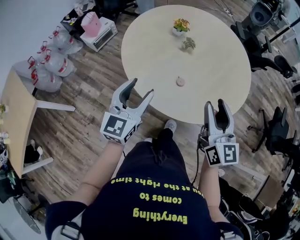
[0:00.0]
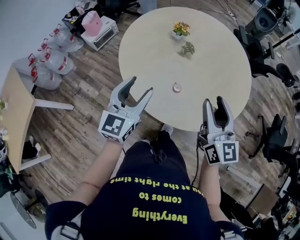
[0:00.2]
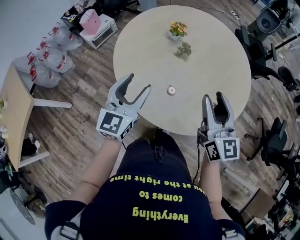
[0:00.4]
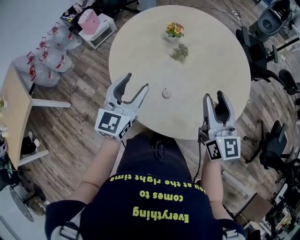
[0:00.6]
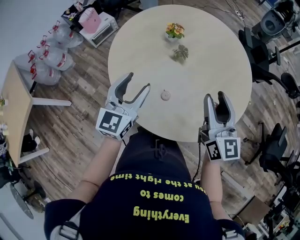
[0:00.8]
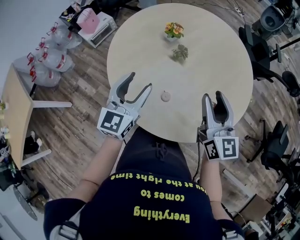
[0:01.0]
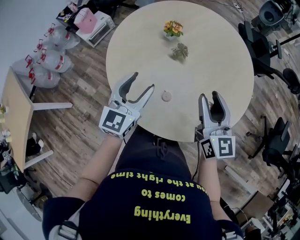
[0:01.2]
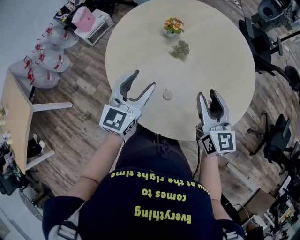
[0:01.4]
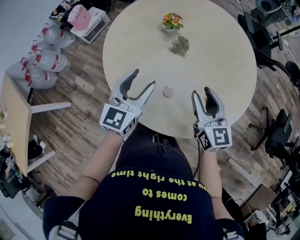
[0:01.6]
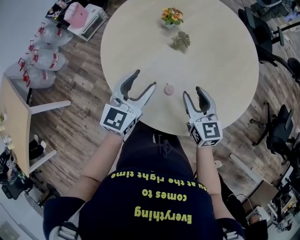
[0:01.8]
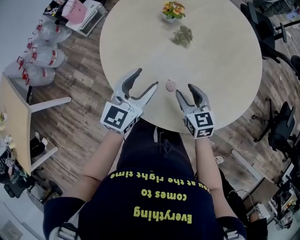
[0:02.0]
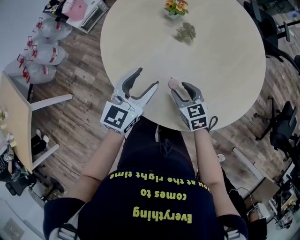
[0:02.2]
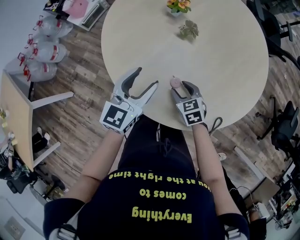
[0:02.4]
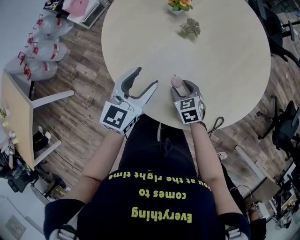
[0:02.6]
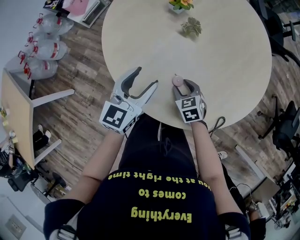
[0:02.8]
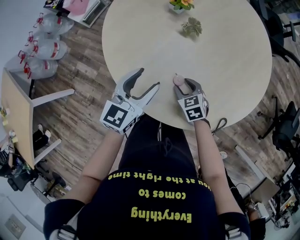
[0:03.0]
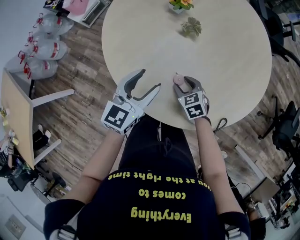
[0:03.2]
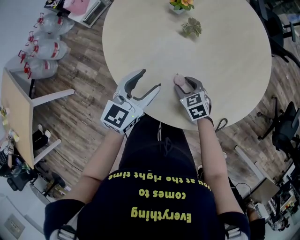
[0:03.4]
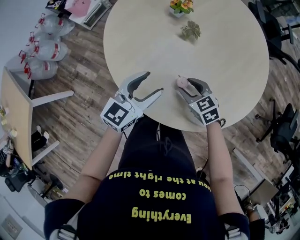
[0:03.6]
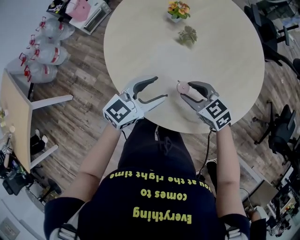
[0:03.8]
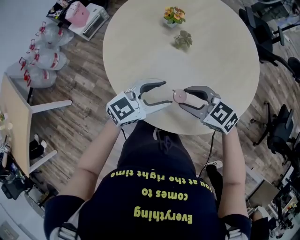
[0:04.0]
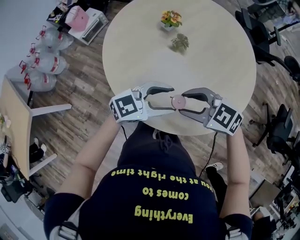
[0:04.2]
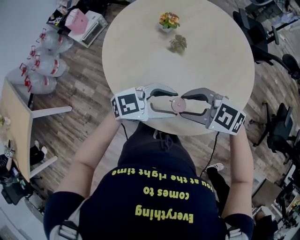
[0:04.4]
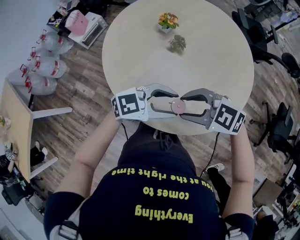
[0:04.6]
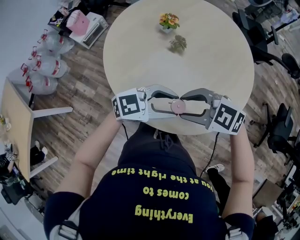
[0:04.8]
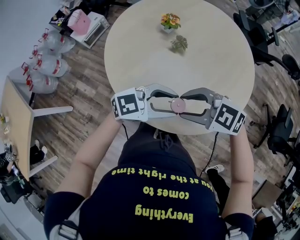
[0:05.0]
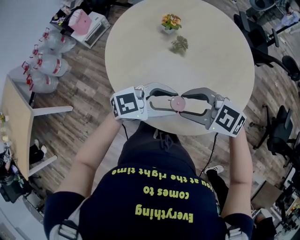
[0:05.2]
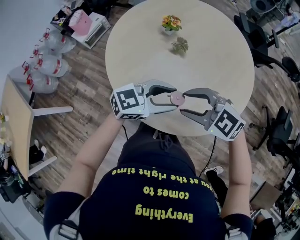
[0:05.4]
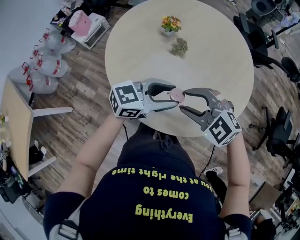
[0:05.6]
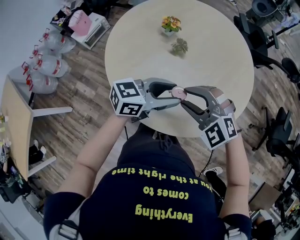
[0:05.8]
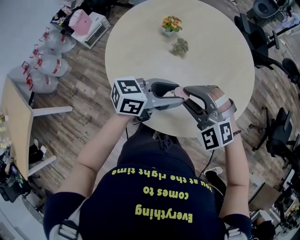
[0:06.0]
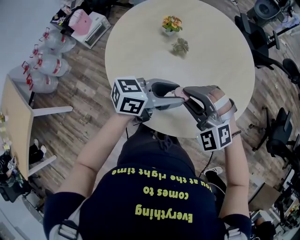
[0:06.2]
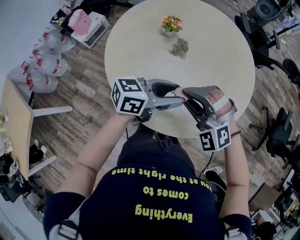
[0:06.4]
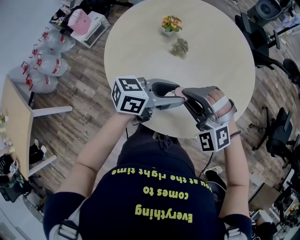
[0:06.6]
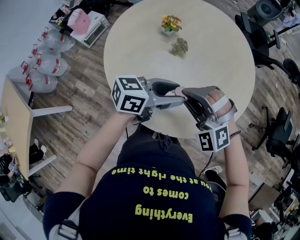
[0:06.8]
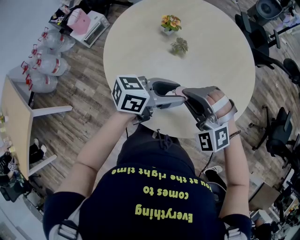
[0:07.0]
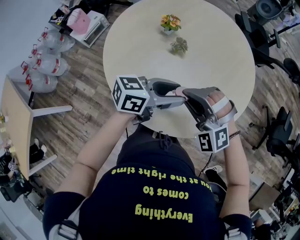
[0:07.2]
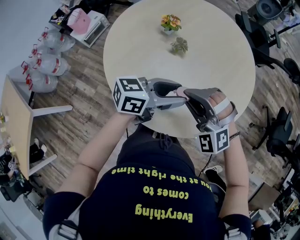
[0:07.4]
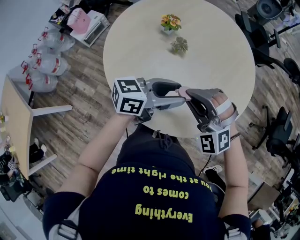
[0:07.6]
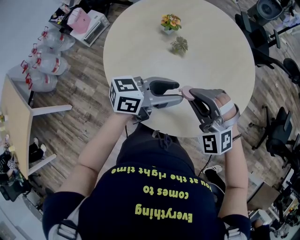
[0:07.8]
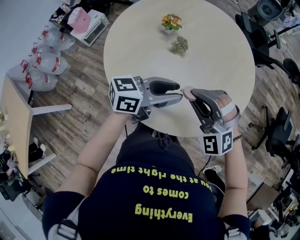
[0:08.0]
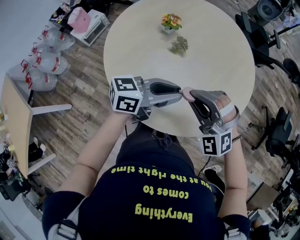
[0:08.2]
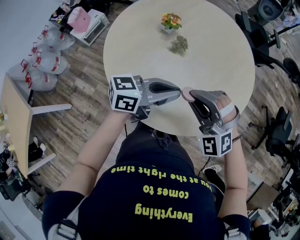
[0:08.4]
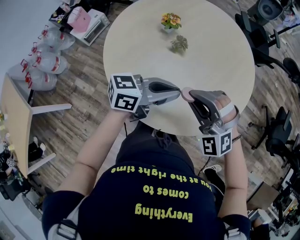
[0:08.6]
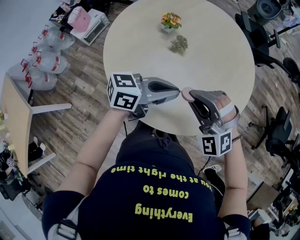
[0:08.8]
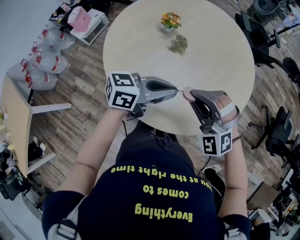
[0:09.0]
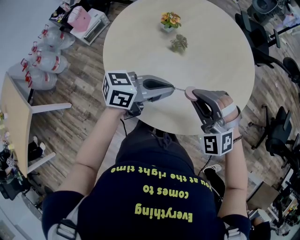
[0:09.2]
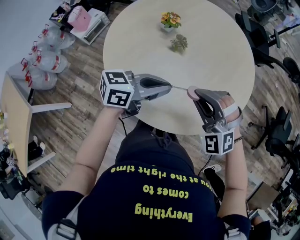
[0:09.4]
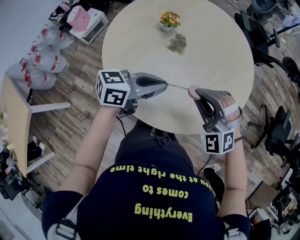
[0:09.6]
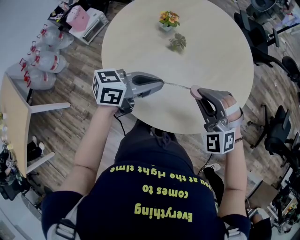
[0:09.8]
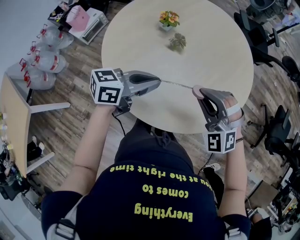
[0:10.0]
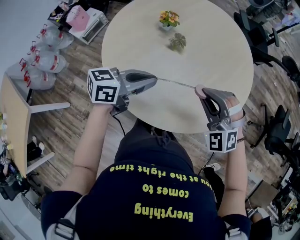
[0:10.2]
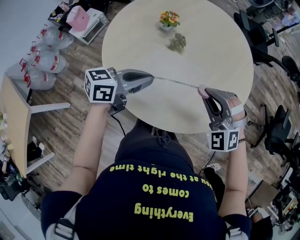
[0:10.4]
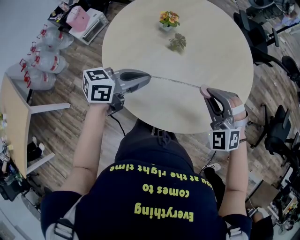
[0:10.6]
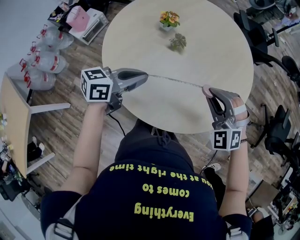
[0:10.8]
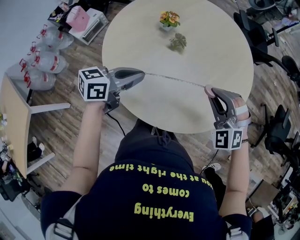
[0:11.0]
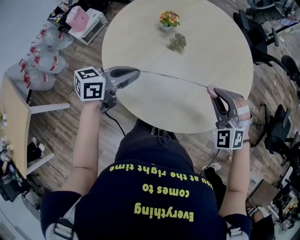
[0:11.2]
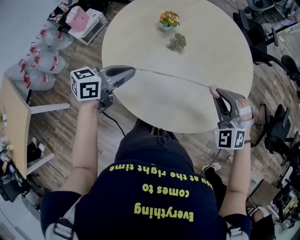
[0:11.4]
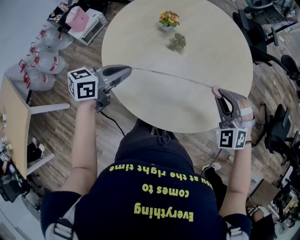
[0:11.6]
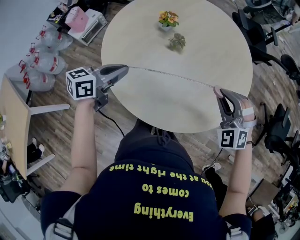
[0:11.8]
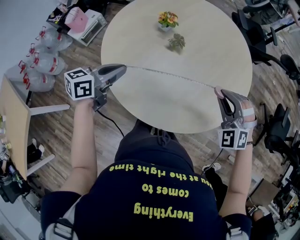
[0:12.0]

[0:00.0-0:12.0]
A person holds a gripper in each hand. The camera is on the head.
0:00.0 to 0:01.6: The left gripper shifts roughly 15 cm forward and to the right. Meanwhile the right gripper moves forward and downward, approximately 20 cm.
0:01.6 to 0:03.0: The right gripper travels downward by approximately 25 cm, and points its fingers approximately 40 degrees further downward, while the left gripper travels downward by roughly 5 cm.
0:03.0 to 0:04.4: The right gripper is displaced upward by roughly 25 cm, and rotates some 50 degrees. The left gripper changes place by some 15 cm, and swivels approximately 50 degrees.
0:04.4 to 0:06.0: The right gripper changes its angle by some 50 degrees, while the left gripper moves some 5 cm, and rotates about 30 degrees.
0:06.0 to 0:07.6: The grippers stay close to where they were, moving slightly.
0:07.6 to 0:09.0: The left gripper closes up.
0:09.0 to 0:10.4: The right gripper goes some 5 cm to the right. The left gripper travels to the left by roughly 10 cm.
0:10.4 to 0:12.0: The left gripper heads to the left, covering roughly 10 cm; the right gripper is displaced to the right by about 5 cm.

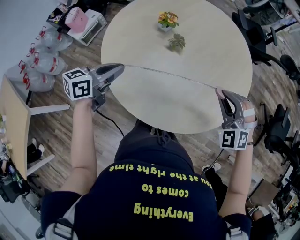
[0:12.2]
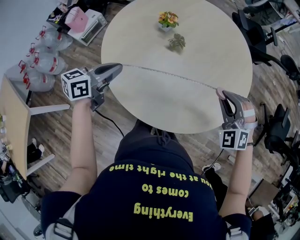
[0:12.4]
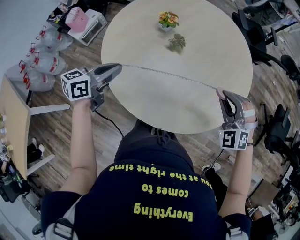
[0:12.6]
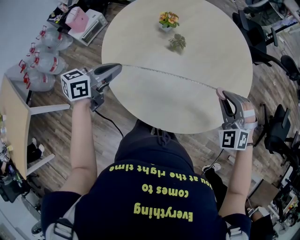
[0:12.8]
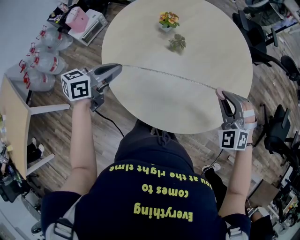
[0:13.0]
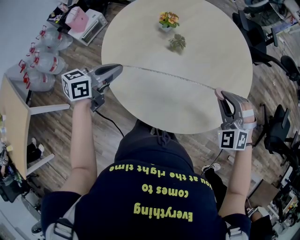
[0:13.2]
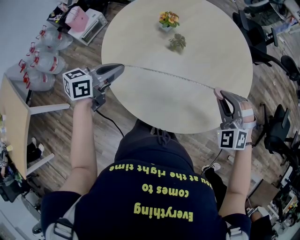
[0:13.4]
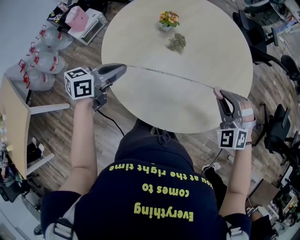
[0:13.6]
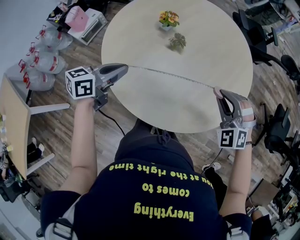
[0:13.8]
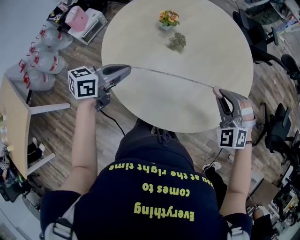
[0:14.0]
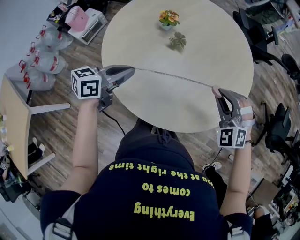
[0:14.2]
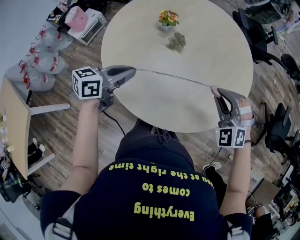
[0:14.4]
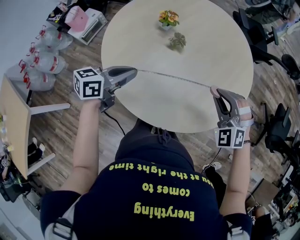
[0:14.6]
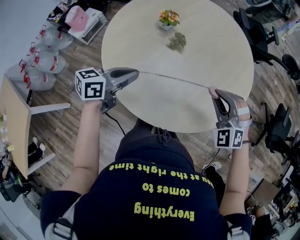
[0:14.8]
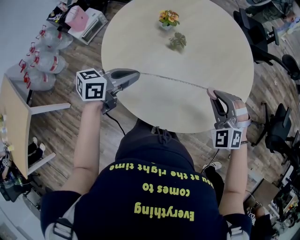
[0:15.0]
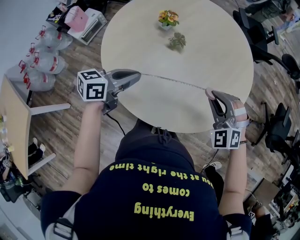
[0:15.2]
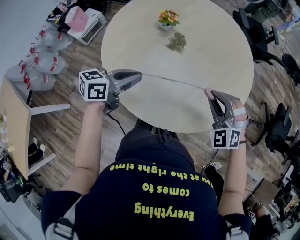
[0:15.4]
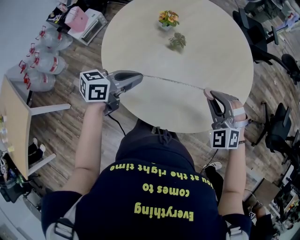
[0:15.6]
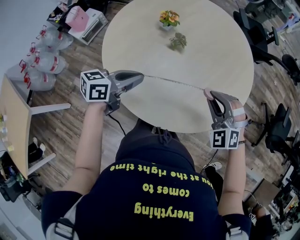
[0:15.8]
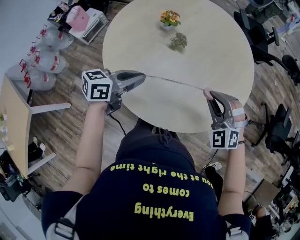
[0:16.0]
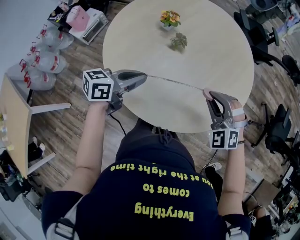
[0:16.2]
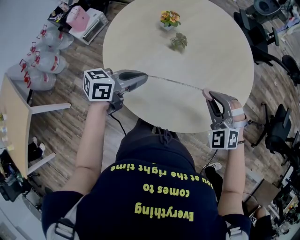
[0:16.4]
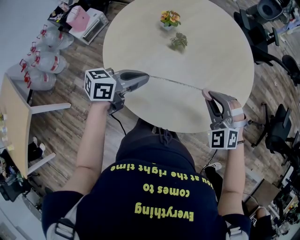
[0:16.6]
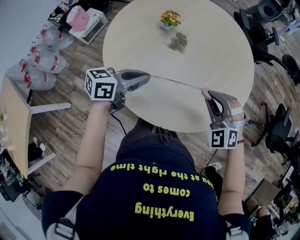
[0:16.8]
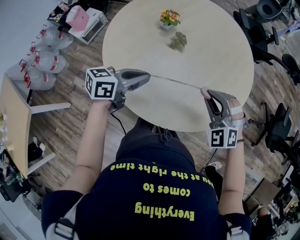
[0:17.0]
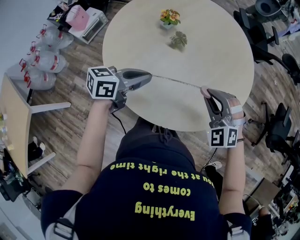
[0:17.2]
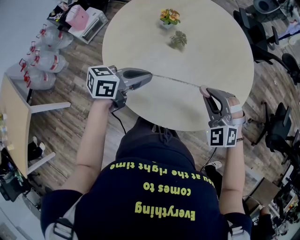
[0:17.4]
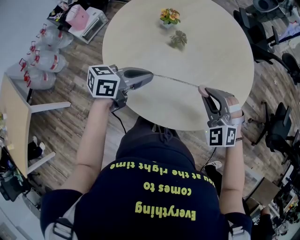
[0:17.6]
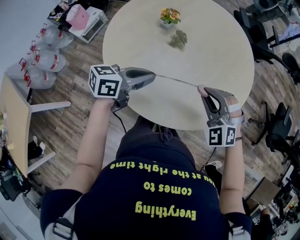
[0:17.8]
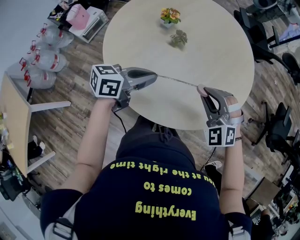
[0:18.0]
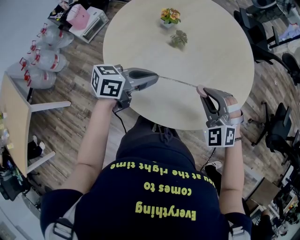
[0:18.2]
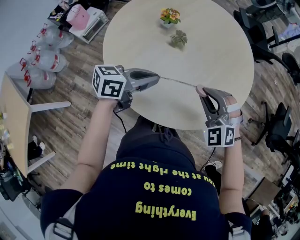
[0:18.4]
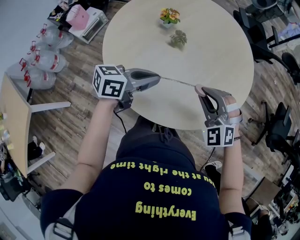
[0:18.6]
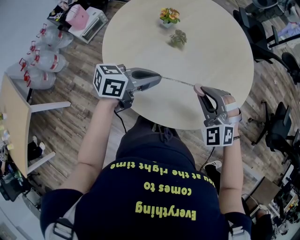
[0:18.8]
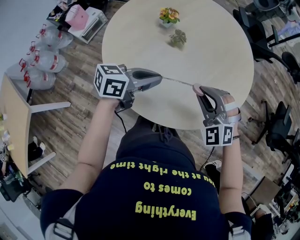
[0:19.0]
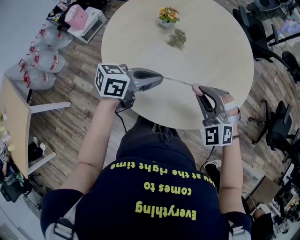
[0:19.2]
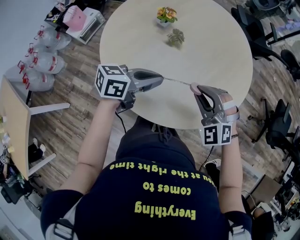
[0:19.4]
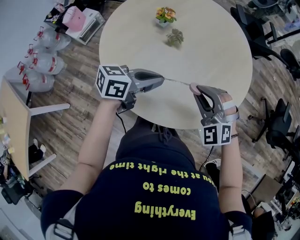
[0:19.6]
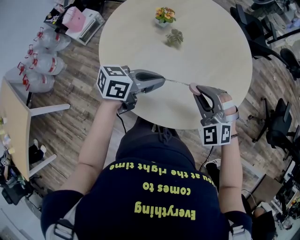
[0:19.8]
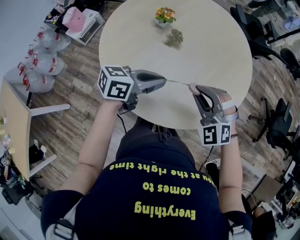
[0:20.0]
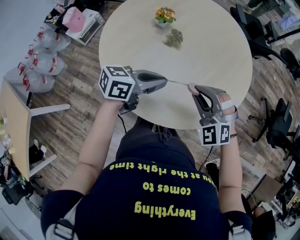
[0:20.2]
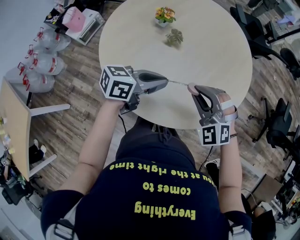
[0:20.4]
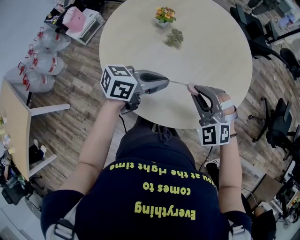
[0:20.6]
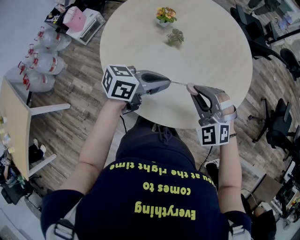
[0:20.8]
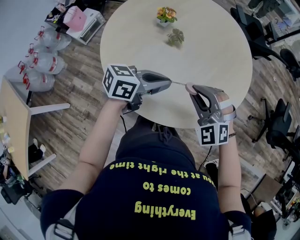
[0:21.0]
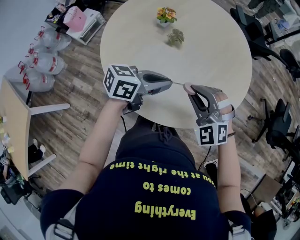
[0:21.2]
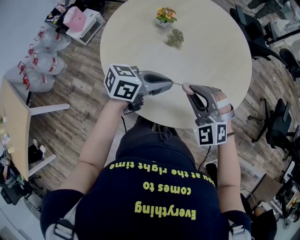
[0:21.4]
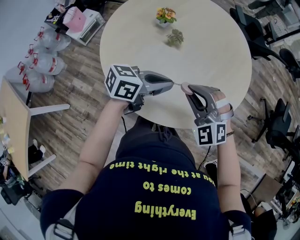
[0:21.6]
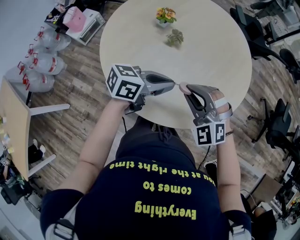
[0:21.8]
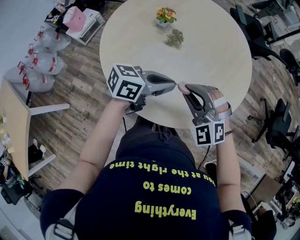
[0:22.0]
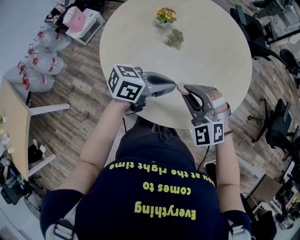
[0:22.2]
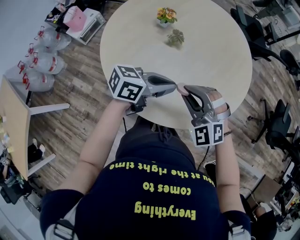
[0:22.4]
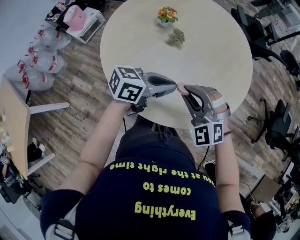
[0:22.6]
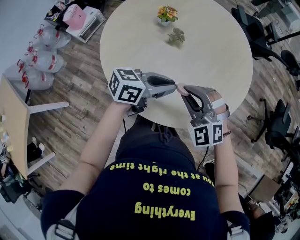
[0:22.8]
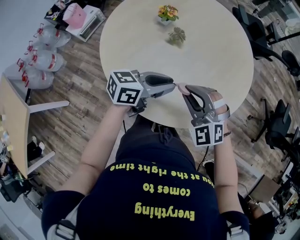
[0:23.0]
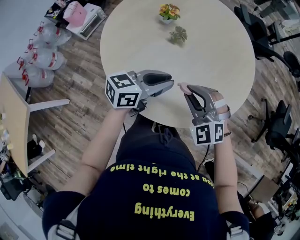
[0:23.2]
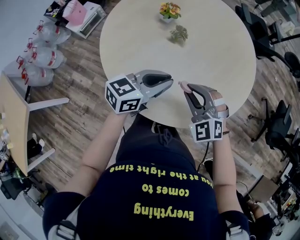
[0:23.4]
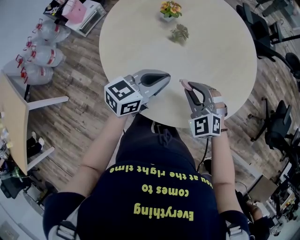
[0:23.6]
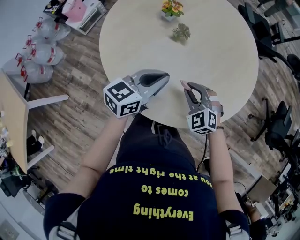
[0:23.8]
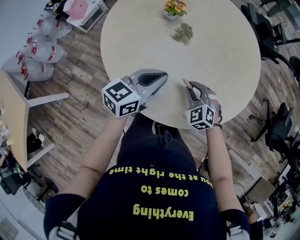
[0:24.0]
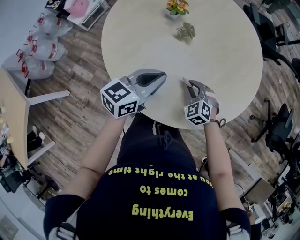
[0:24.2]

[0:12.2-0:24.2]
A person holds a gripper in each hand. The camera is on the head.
0:12.2 to 0:13.8: Both grippers stay about where they are.
0:13.8 to 0:15.2: The left gripper moves roughly 5 cm.
0:15.2 to 0:18.2: The grippers make only small movements.
0:18.2 to 0:21.2: The grippers stay close to where they were, moving slightly.
0:21.2 to 0:22.6: The grippers make only small movements.
0:22.6 to 0:24.2: The right gripper shifts approximately 20 cm downward, and swivels approximately 30 degrees, while the left gripper travels to the left by approximately 5 cm, and rotates some 30 degrees.
